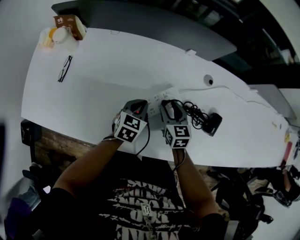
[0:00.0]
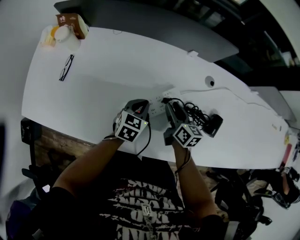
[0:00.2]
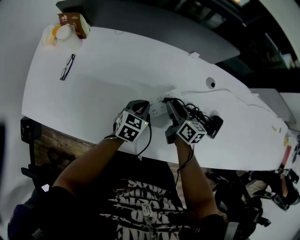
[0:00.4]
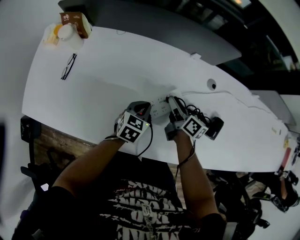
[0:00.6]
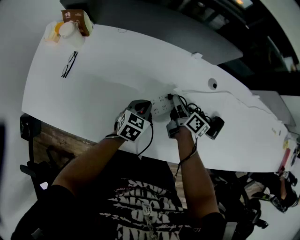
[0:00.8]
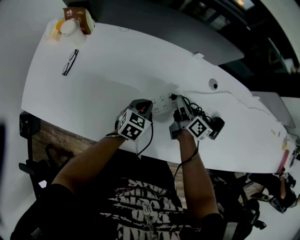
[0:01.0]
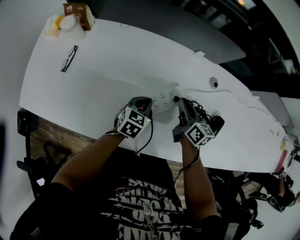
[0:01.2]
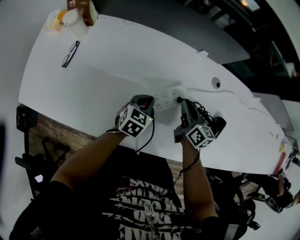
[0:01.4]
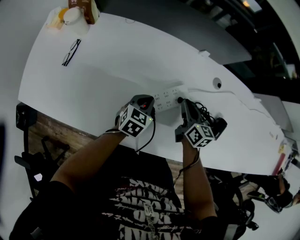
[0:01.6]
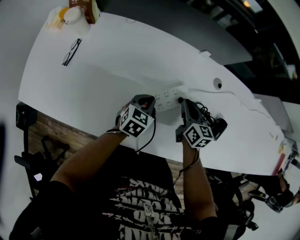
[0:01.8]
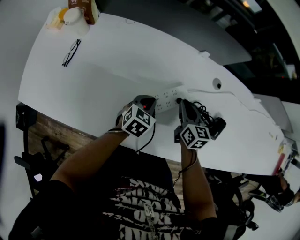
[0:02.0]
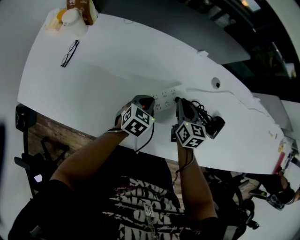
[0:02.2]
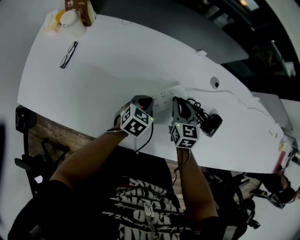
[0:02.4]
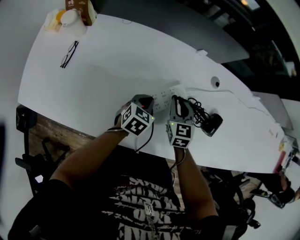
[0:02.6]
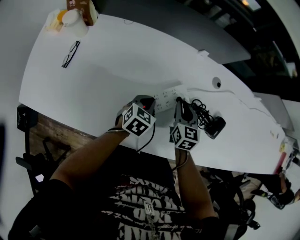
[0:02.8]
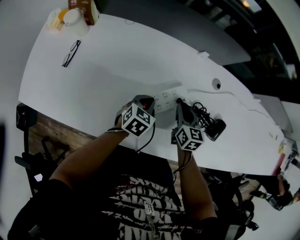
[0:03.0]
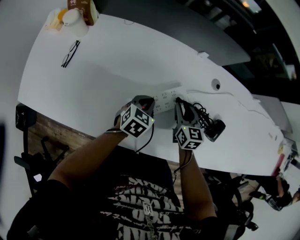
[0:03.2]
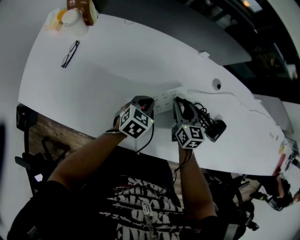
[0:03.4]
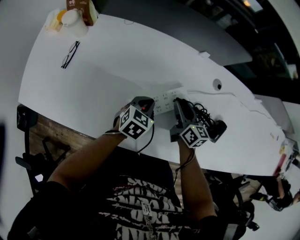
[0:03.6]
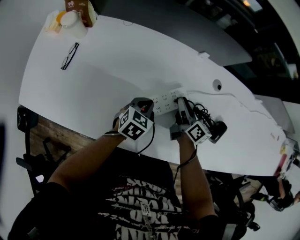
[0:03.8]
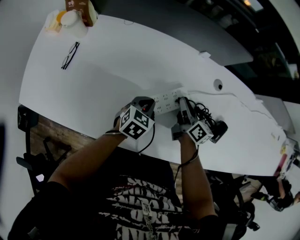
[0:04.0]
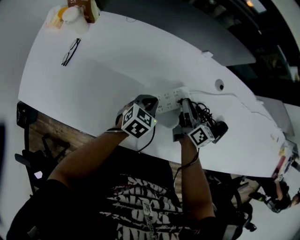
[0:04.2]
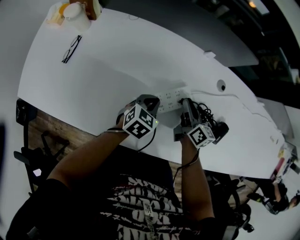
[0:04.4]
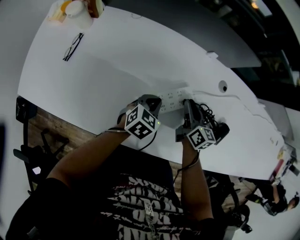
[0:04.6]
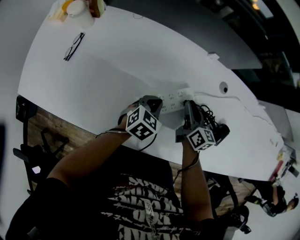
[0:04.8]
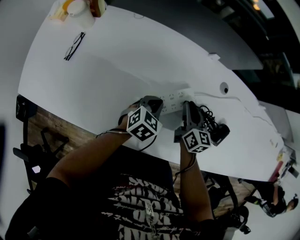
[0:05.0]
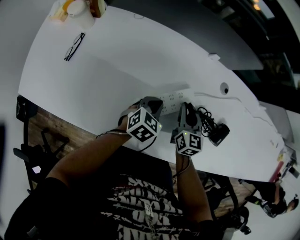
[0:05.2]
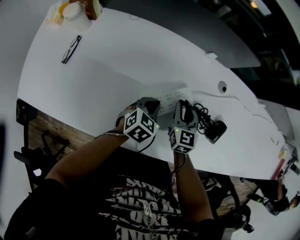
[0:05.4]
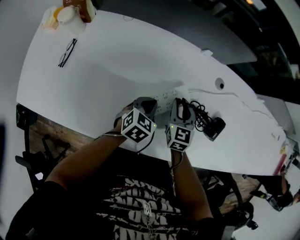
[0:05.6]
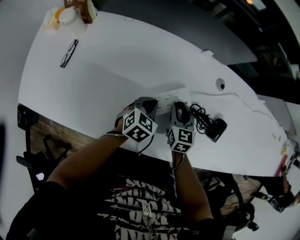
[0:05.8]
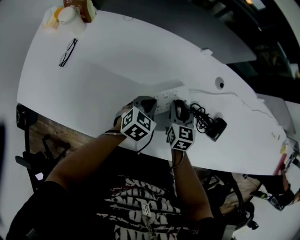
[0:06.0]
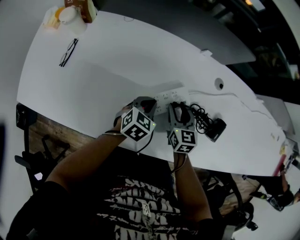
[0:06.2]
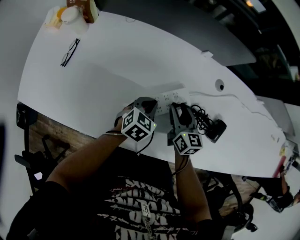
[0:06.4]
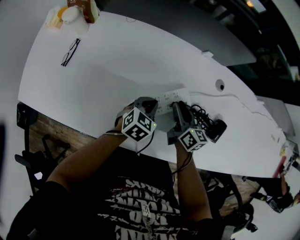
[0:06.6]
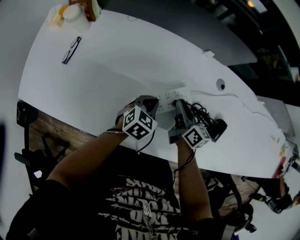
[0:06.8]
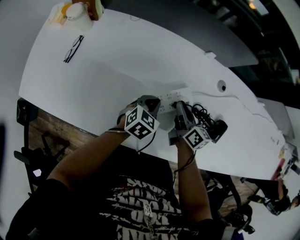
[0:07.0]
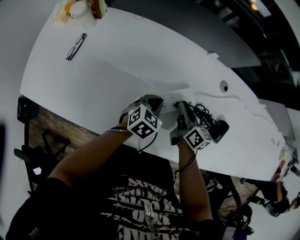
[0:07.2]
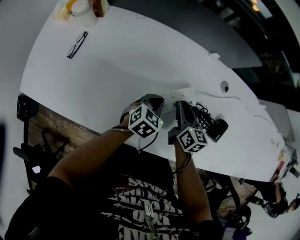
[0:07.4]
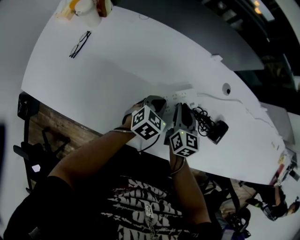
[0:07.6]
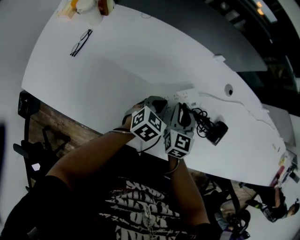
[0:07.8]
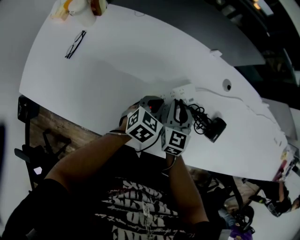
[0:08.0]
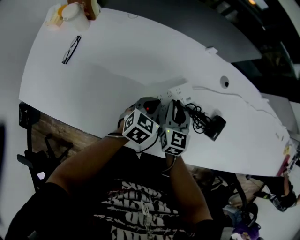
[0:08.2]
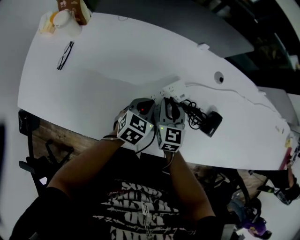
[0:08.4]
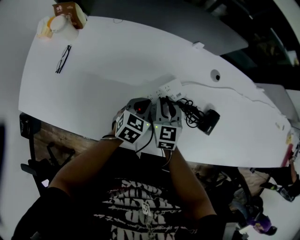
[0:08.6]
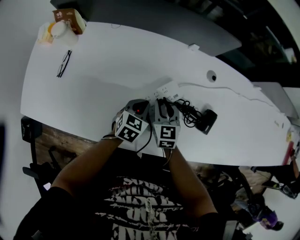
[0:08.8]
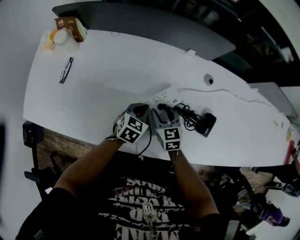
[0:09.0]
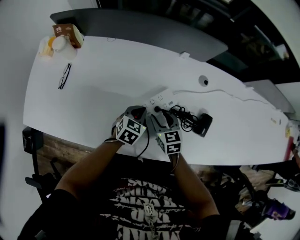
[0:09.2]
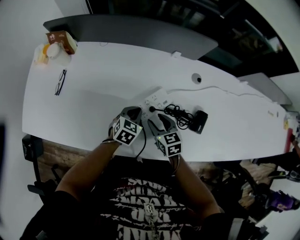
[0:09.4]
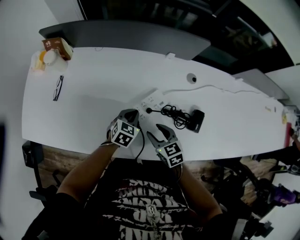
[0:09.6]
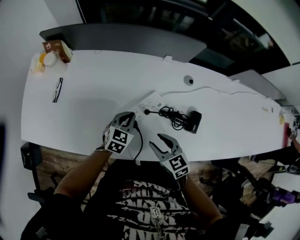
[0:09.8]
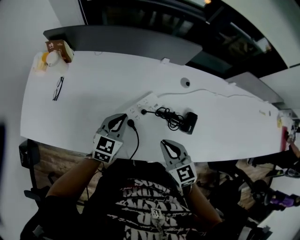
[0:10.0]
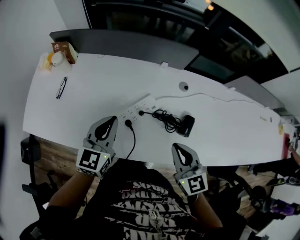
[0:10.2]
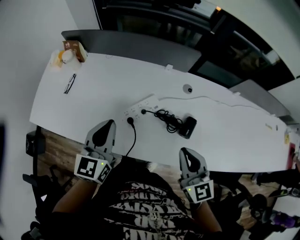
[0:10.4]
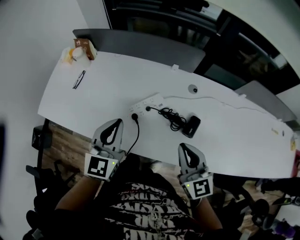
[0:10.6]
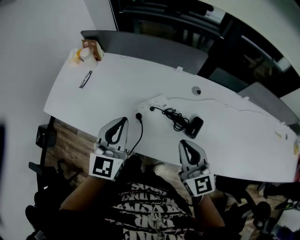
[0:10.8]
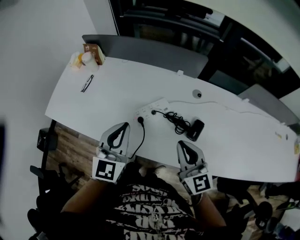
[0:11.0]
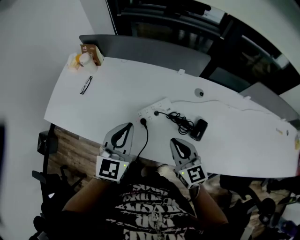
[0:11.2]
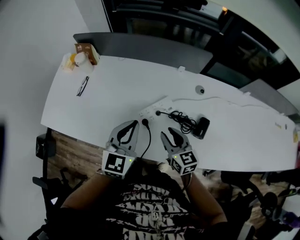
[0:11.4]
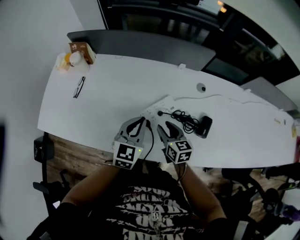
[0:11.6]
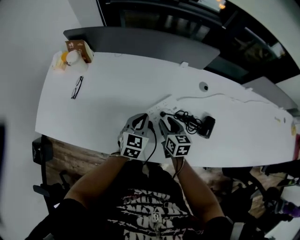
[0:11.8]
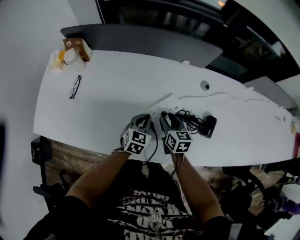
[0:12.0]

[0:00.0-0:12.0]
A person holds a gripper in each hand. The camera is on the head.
0:00.0 to 0:01.6: The right gripper swivels about 20 degrees, and closes.
0:03.0 to 0:04.4: The right gripper rotates some 30 degrees, and opens and closes again.
0:04.4 to 0:06.0: The right gripper turns by roughly 40 degrees.
0:07.6 to 0:09.0: The right gripper swivels roughly 20 degrees, and opens up.
0:09.0 to 0:10.4: The right gripper heads upward, to the right and backward, covering approximately 35 cm, changes its angle by roughly 30 degrees, and closes its fingers. Meanwhile the left gripper heads upward, covering approximately 30 cm, and tips its fingers upward by some 30 degrees.
0:10.4 to 0:12.0: The left gripper goes about 25 cm downward, and rotates roughly 30 degrees, while the right gripper travels downward, forward and to the left by roughly 30 cm, swivels some 30 degrees, and opens.

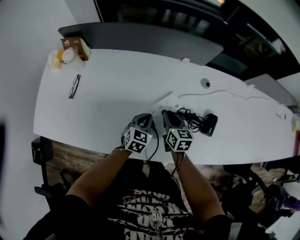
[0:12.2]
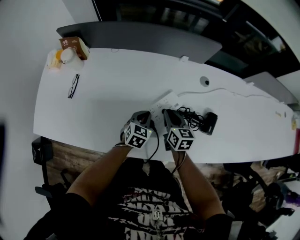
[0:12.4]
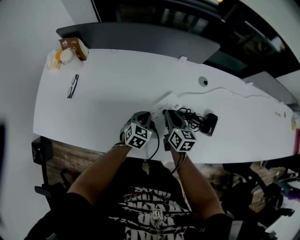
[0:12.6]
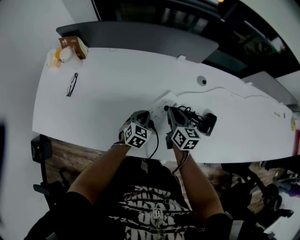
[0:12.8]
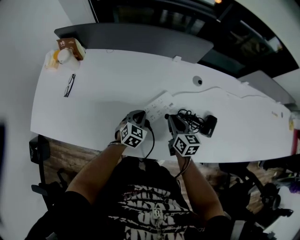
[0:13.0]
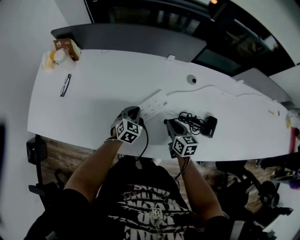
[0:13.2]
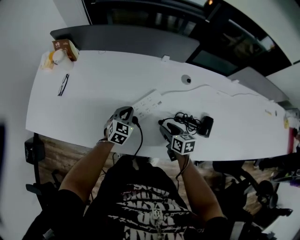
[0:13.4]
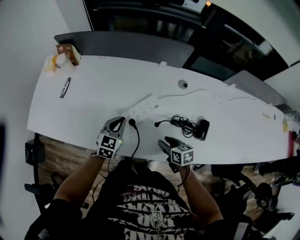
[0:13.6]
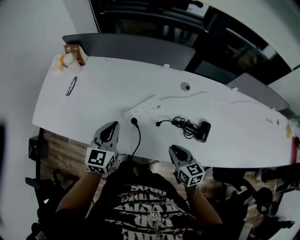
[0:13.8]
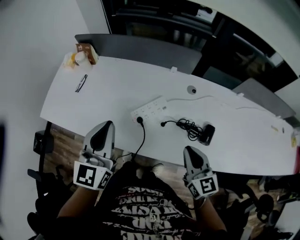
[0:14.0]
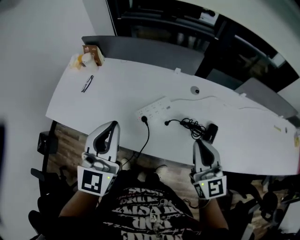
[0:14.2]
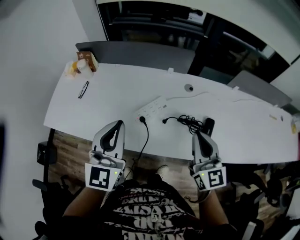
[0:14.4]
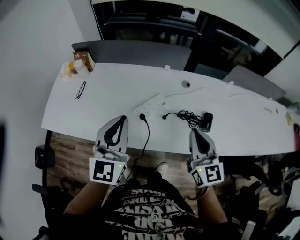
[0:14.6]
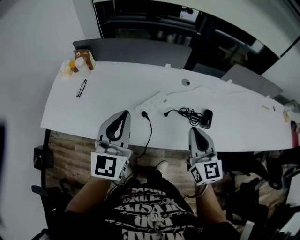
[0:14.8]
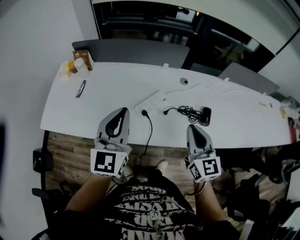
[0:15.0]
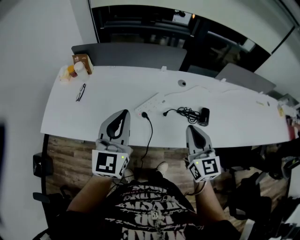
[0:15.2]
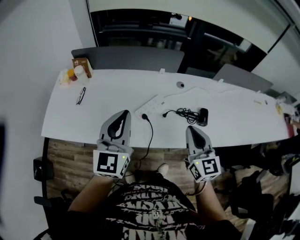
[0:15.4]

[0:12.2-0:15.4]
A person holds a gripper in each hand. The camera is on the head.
0:12.2 to 0:13.8: The right gripper heads backward, to the right and upward, covering about 25 cm, and opens and closes again; the left gripper shifts some 20 cm upward and backward, and swivels approximately 30 degrees.
0:13.8 to 0:15.4: The right gripper moves upward, approximately 20 cm, and changes its angle by about 40 degrees. The left gripper shifts roughly 20 cm upward and backward, and rotates some 20 degrees.

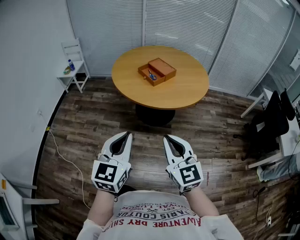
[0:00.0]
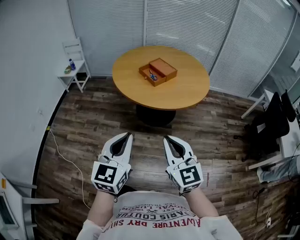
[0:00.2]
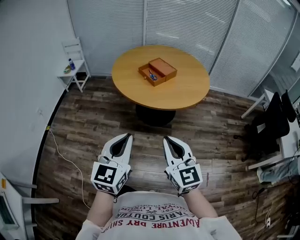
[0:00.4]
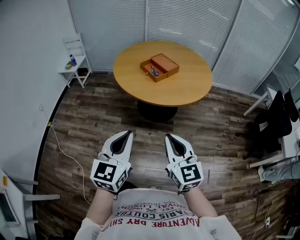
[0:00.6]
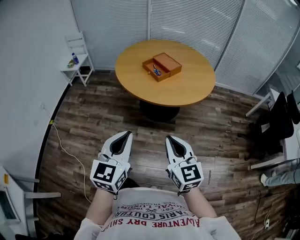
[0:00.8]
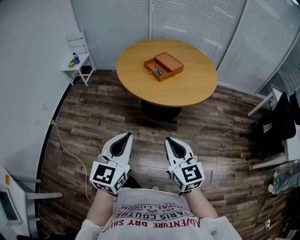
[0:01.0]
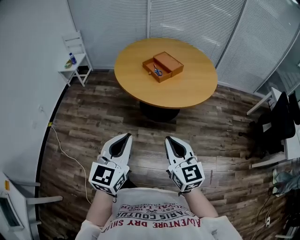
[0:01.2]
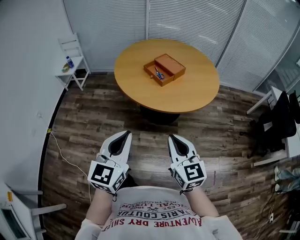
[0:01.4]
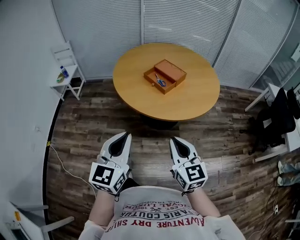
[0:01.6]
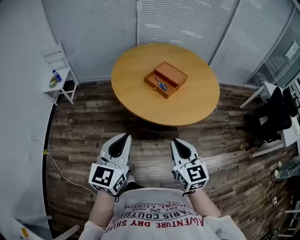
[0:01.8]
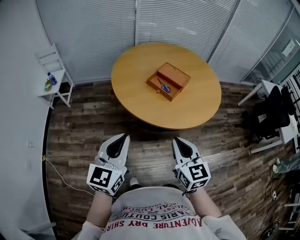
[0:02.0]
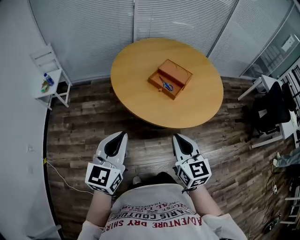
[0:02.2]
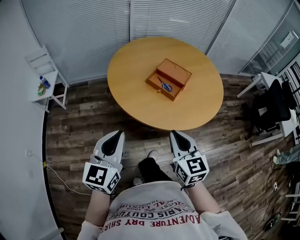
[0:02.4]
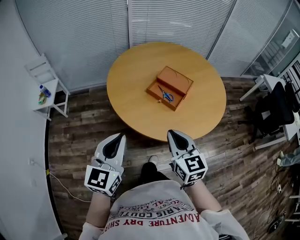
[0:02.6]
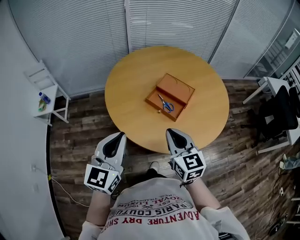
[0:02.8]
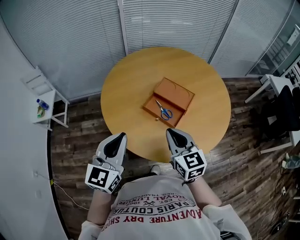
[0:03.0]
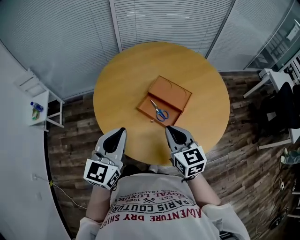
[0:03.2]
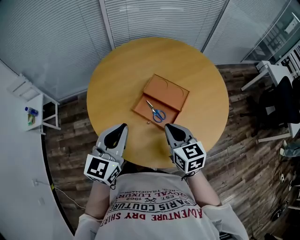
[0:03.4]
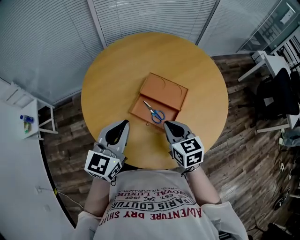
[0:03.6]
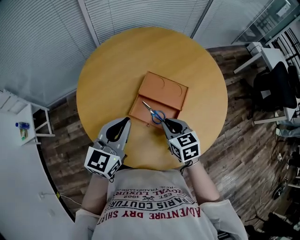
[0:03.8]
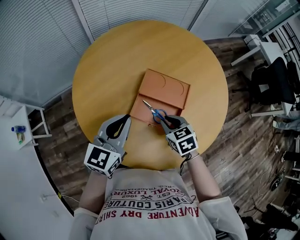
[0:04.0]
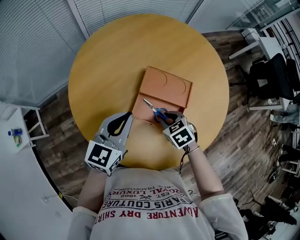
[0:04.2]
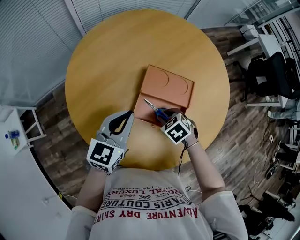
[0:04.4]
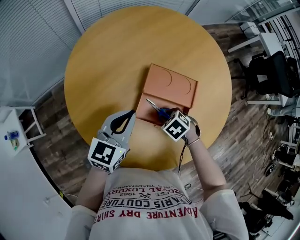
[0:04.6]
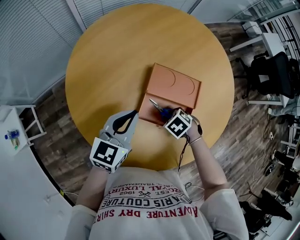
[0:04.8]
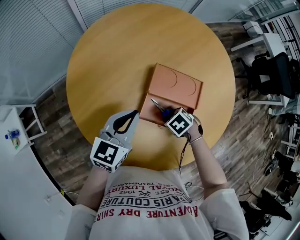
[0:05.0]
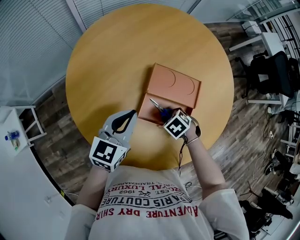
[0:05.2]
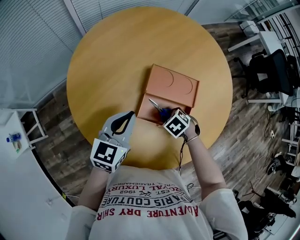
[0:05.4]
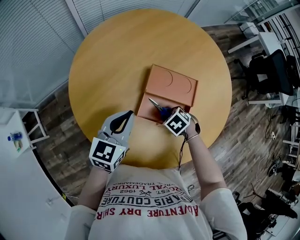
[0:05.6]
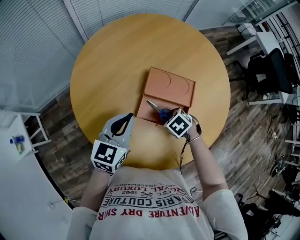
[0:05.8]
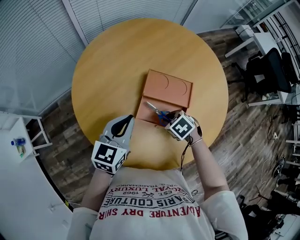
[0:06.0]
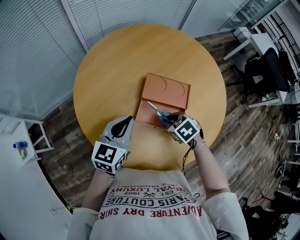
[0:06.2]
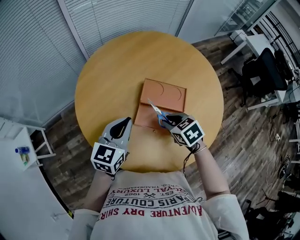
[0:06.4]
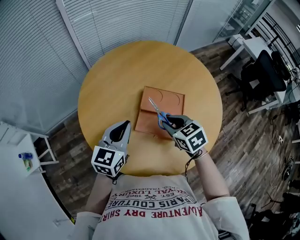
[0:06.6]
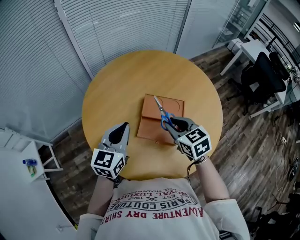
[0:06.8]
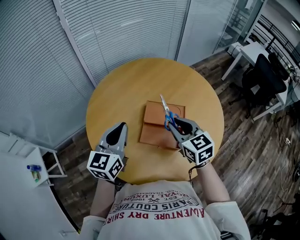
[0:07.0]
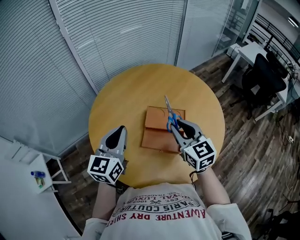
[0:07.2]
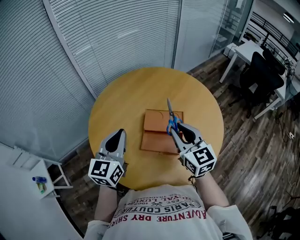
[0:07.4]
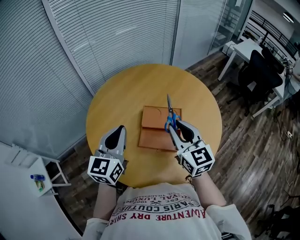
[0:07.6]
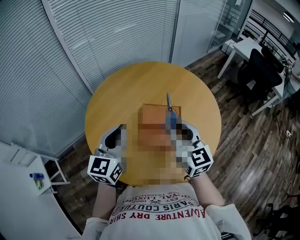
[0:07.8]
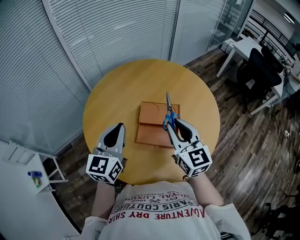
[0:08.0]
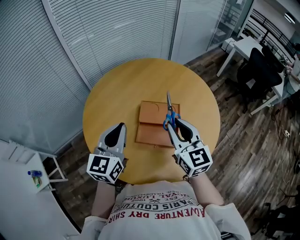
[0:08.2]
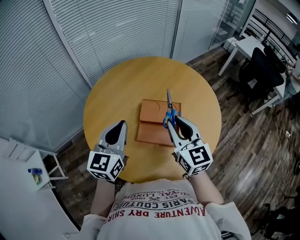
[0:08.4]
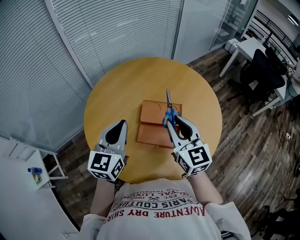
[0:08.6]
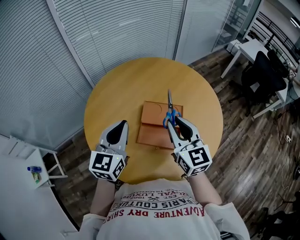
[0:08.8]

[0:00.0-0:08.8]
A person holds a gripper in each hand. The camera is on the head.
0:00.0 to 0:01.4: The right gripper goes roughly 10 cm forward, while the left gripper is displaced forward and to the left by about 10 cm.
0:01.4 to 0:03.0: The two grippers travel together, forward, some 50 cm.
0:03.0 to 0:04.4: The left gripper goes roughly 30 cm forward and downward, and swivels about 30 degrees; the right gripper travels downward and forward by some 30 cm, points its fingers about 60 degrees further downward, and opens.
0:04.4 to 0:05.8: There are only small adjustments of the grippers.
0:05.8 to 0:07.4: The left gripper heads upward, covering roughly 15 cm; the right gripper travels upward by approximately 30 cm, and points its fingers some 70 degrees further upward.
0:07.4 to 0:08.8: There are only small adjustments of the grippers.
